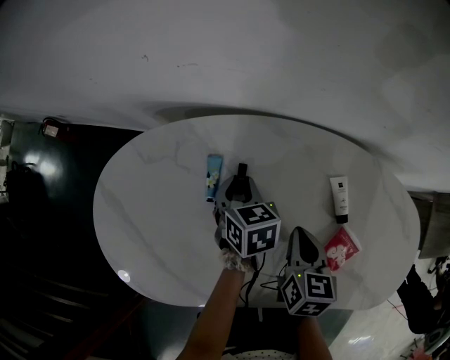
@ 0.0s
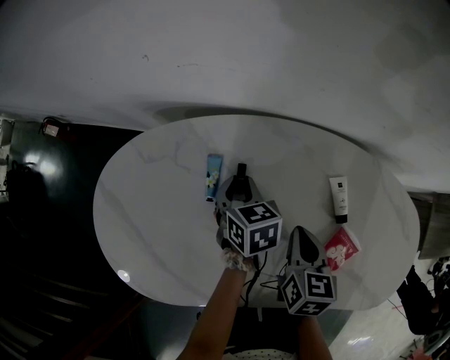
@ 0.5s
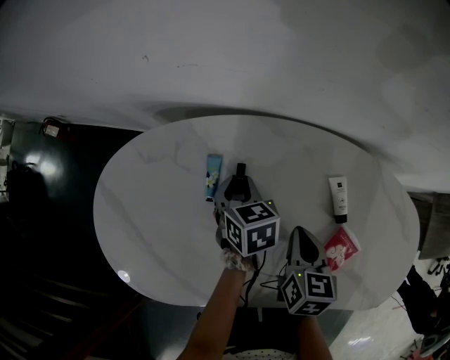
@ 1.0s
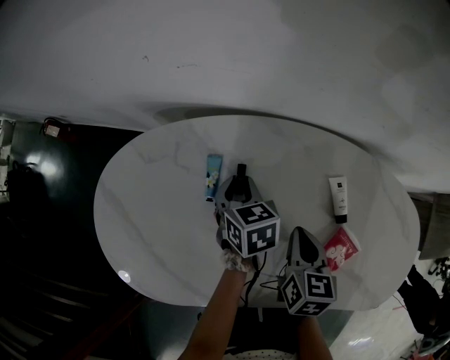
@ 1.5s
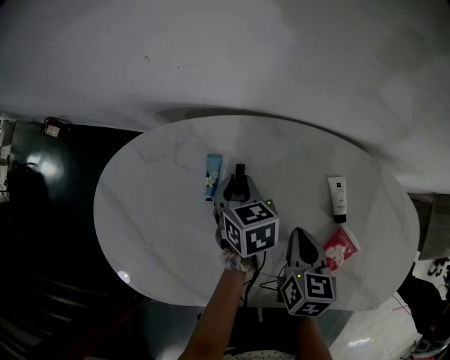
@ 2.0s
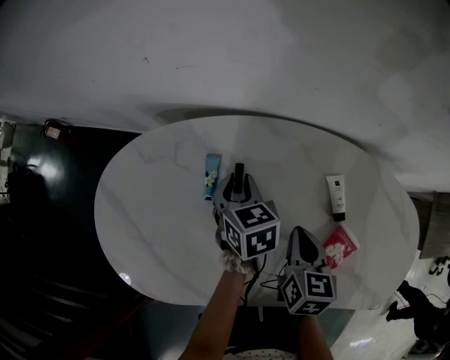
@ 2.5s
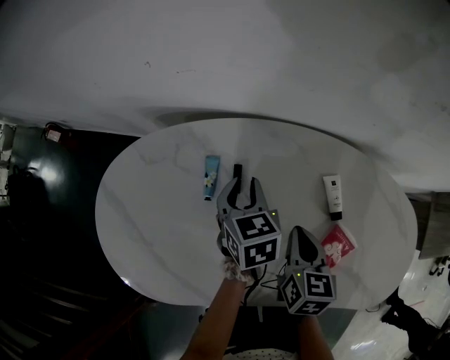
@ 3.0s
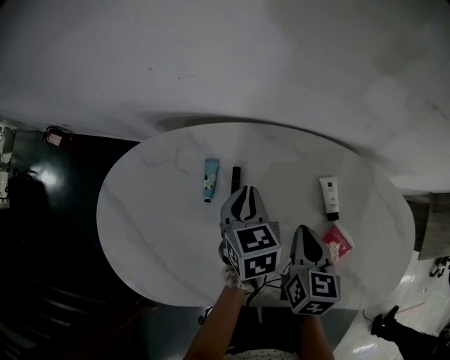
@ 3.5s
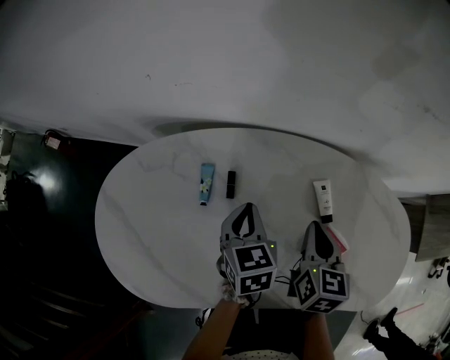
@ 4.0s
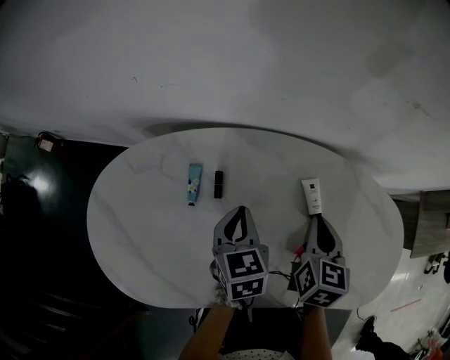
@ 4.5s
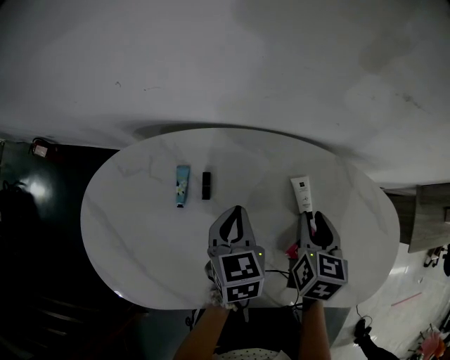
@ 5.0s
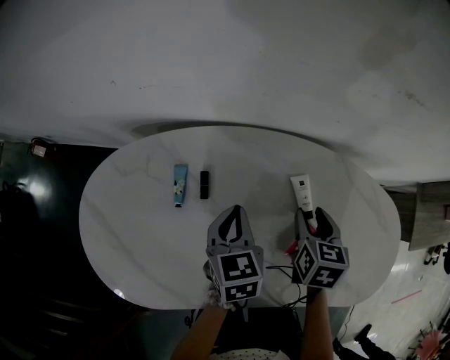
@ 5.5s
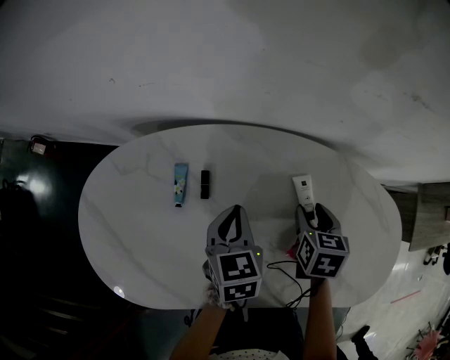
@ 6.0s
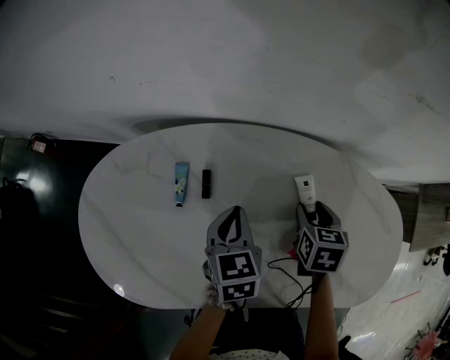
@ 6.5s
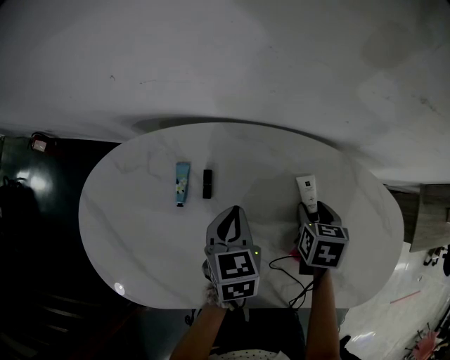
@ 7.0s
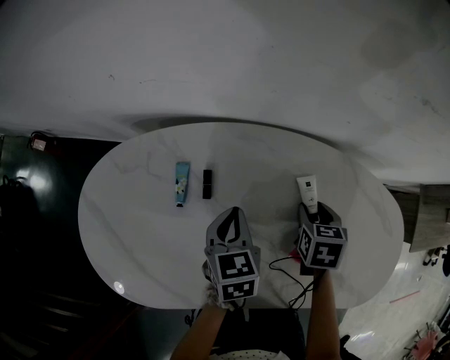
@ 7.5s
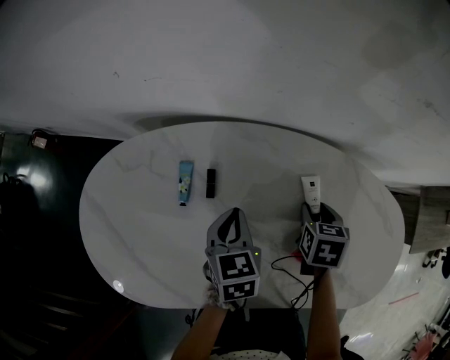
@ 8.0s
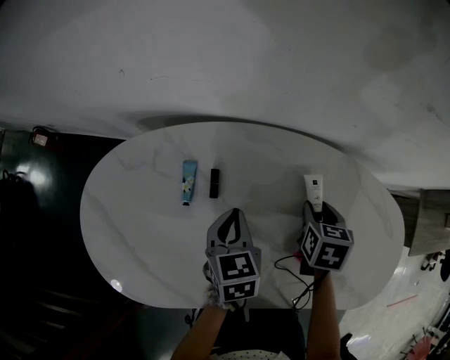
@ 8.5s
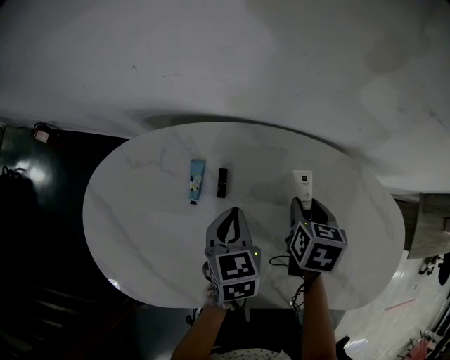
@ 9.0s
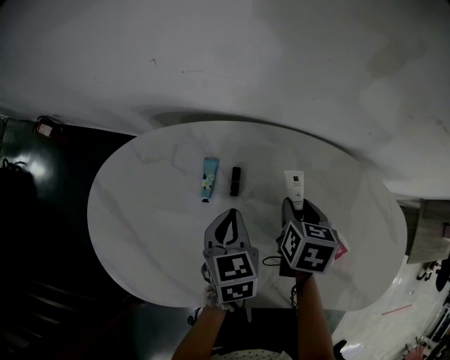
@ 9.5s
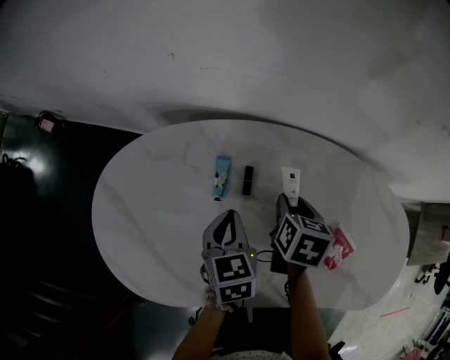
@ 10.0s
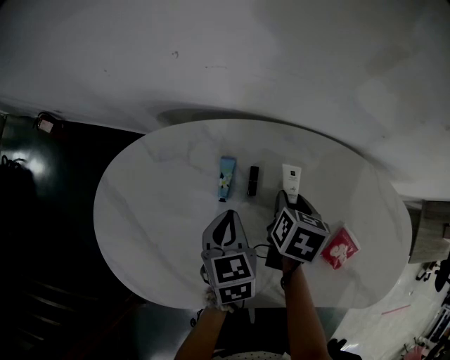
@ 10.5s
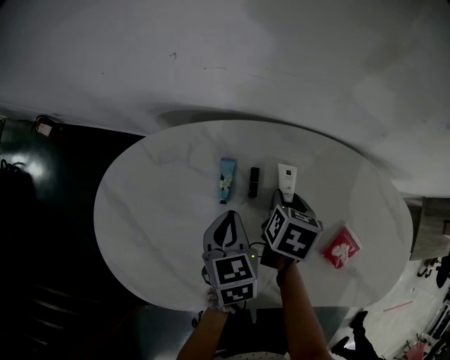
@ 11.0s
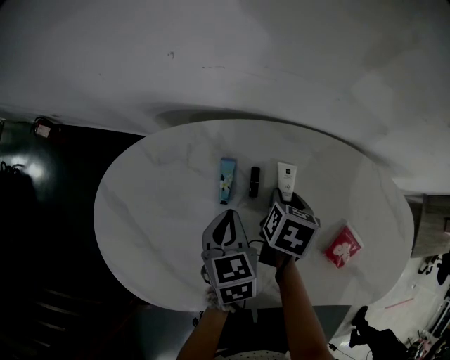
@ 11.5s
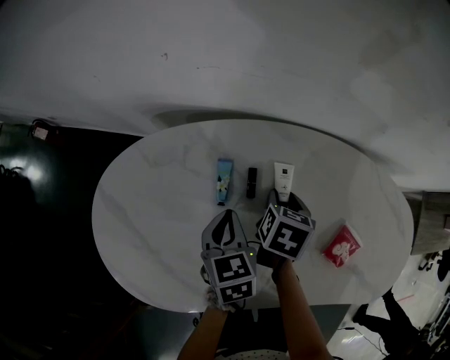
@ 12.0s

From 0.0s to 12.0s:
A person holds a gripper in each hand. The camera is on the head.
From 0.0s to 2.0s: The two grippers keep their place.
From 2.0s to 4.0s: The left gripper goes about 10 cm upward and backward, and closes up, while the right gripper shifts some 10 cm to the right and upward.
From 4.0s to 6.0s: The right gripper travels downward and to the right by about 10 cm, and opens its fingers.
From 6.0s to 8.0s: The grippers move only a little.
From 8.0s to 10.0s: The right gripper goes some 15 cm to the left; the left gripper goes about 10 cm to the left.
From 10.0s to 12.0s: There are only small adjustments of the grippers.

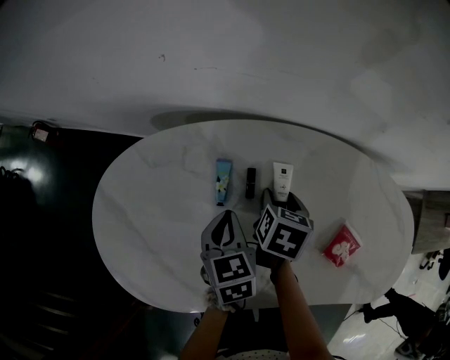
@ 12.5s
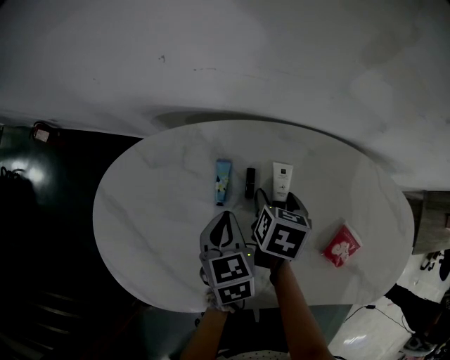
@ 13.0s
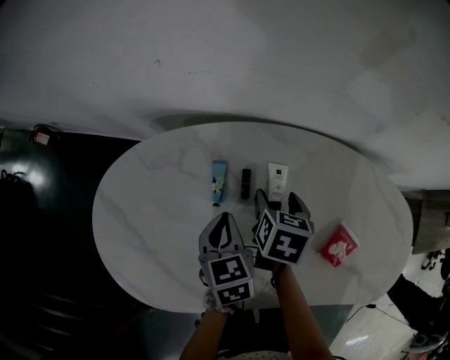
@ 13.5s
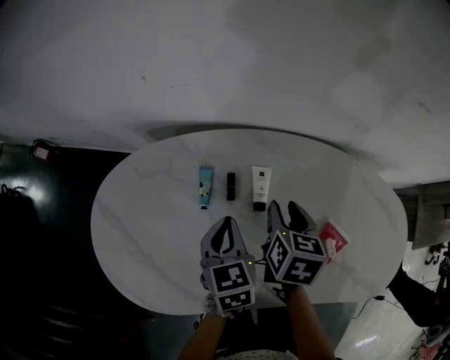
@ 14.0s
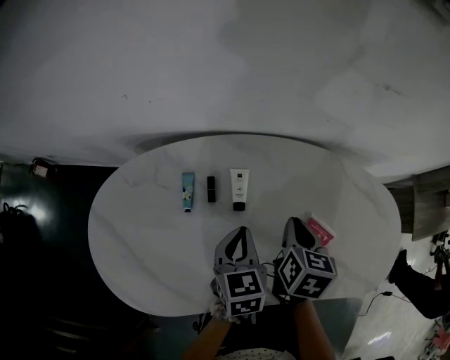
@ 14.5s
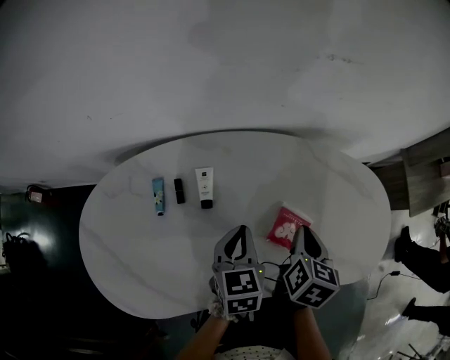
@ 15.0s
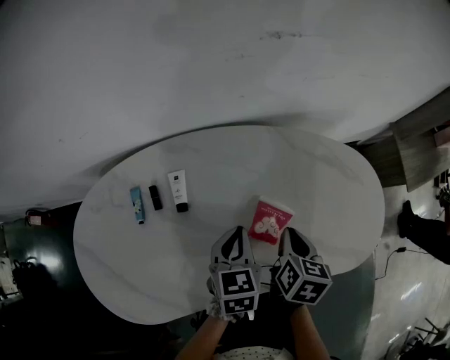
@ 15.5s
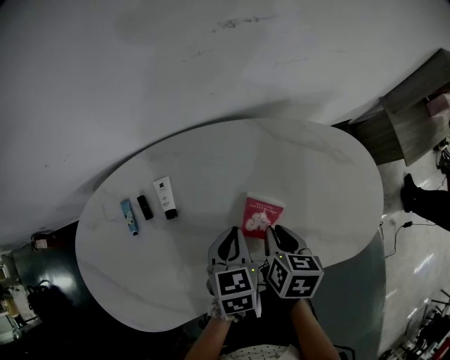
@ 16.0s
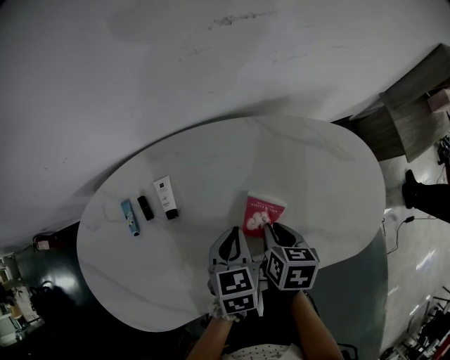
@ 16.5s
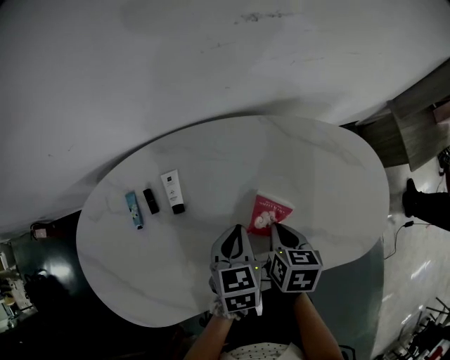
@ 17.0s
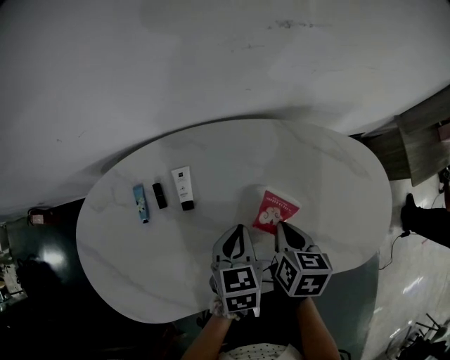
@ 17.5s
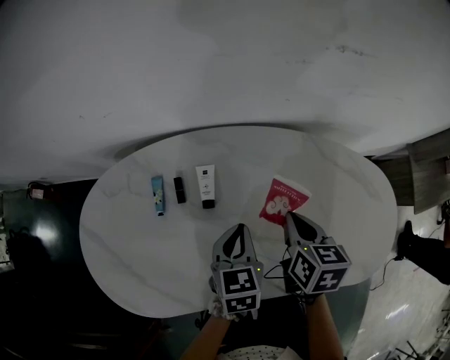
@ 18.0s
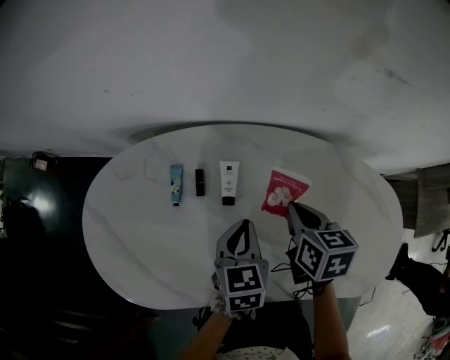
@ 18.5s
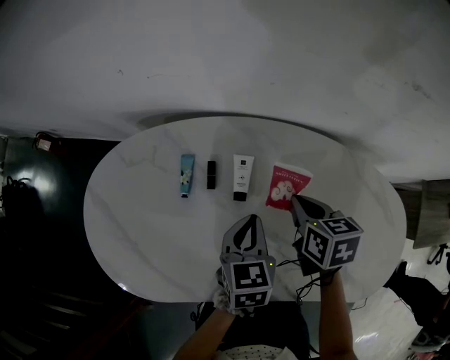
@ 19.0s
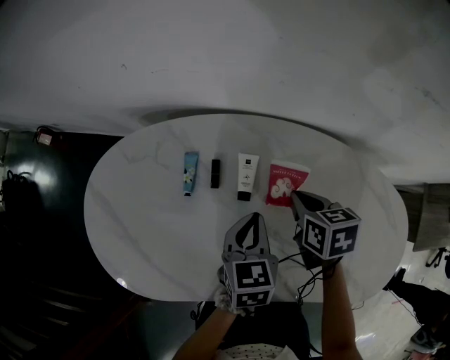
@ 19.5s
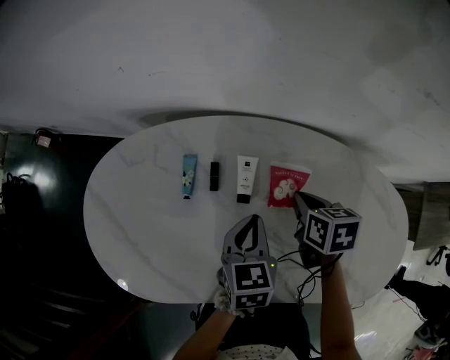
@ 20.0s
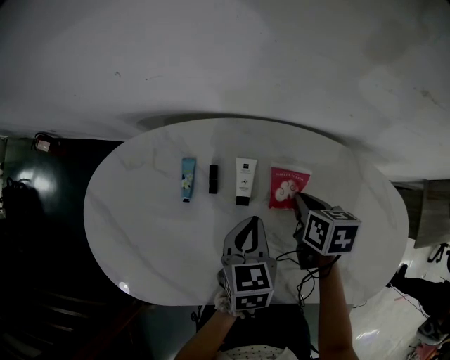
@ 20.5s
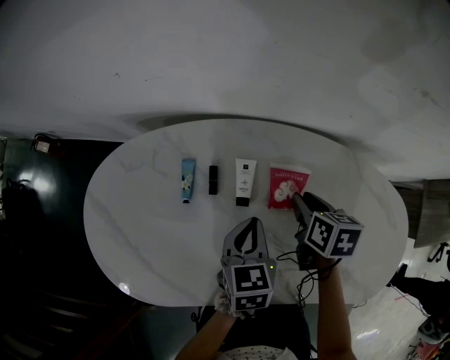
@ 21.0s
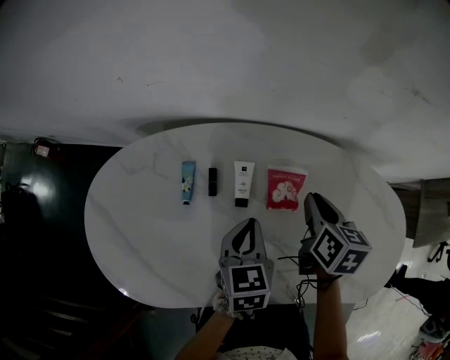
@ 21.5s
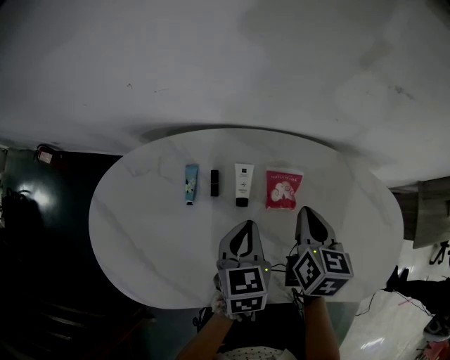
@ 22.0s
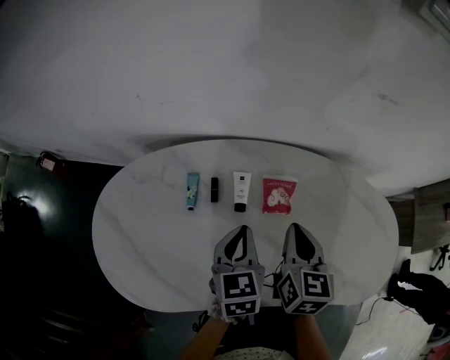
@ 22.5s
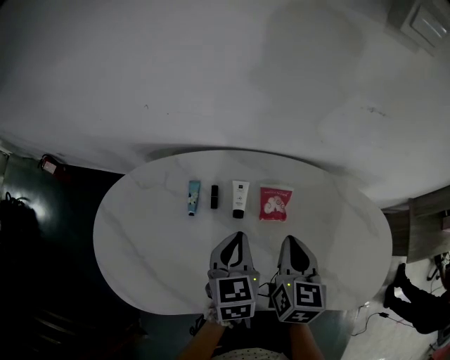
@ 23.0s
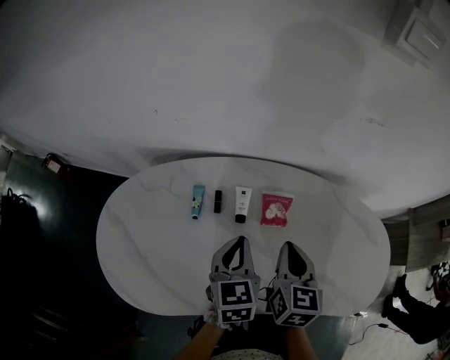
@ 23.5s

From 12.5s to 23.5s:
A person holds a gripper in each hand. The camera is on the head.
From 12.5s to 14.5s: The right gripper shifts approximately 15 cm to the right, upward and backward, and closes its fingers, while the left gripper moves to the right, some 15 cm.
From 14.5s to 16.0s: The left gripper travels to the right by some 15 cm; the right gripper moves to the right and backward, roughly 15 cm.
From 16.0s to 18.0s: The right gripper heads forward and to the left, covering roughly 10 cm. The left gripper shifts approximately 10 cm to the left.
From 18.0s to 20.0s: The left gripper is displaced to the left by approximately 5 cm, while the right gripper heads forward, downward and to the left, covering about 10 cm, and swivels about 20 degrees.
From 20.0s to 21.5s: The right gripper shifts by about 5 cm, and changes its angle by approximately 20 degrees.
From 21.5s to 23.5s: The left gripper shifts about 10 cm upward; the right gripper heads backward and upward, covering approximately 15 cm.

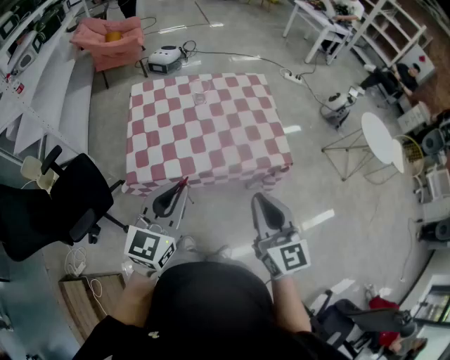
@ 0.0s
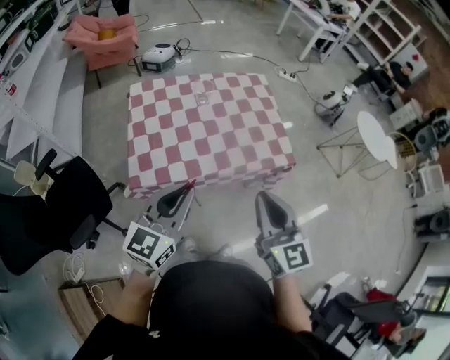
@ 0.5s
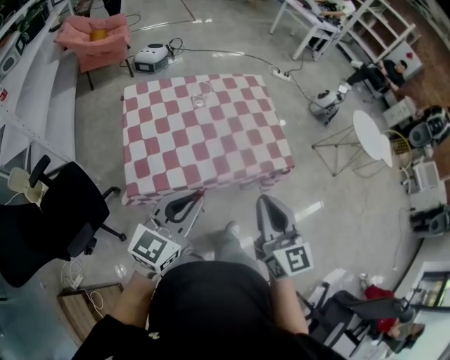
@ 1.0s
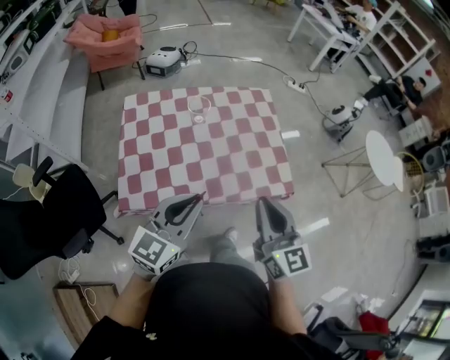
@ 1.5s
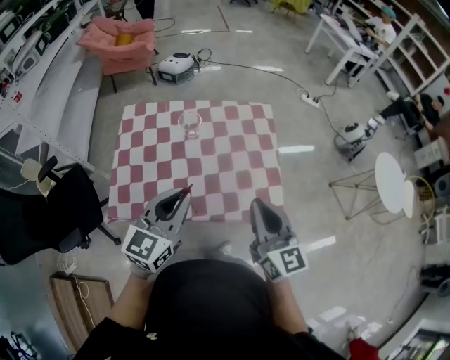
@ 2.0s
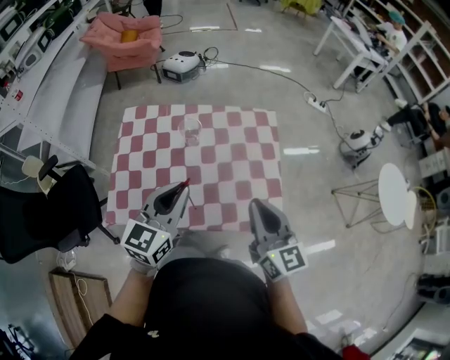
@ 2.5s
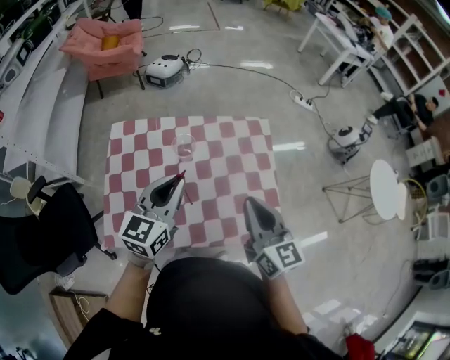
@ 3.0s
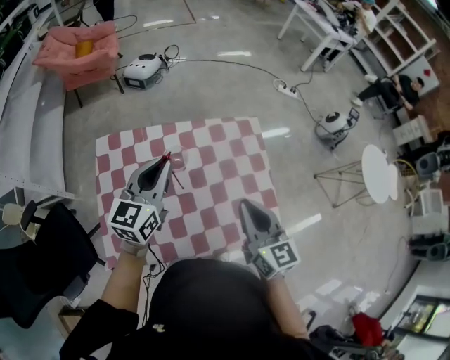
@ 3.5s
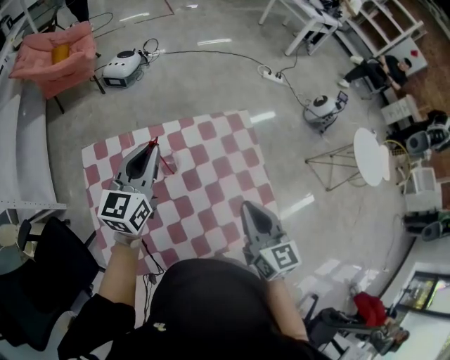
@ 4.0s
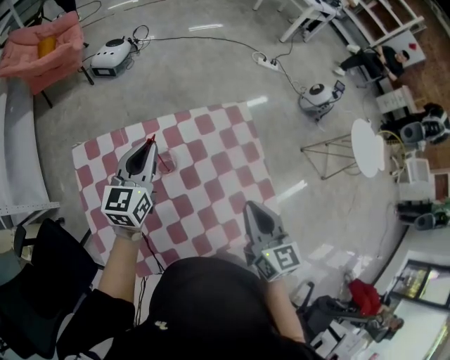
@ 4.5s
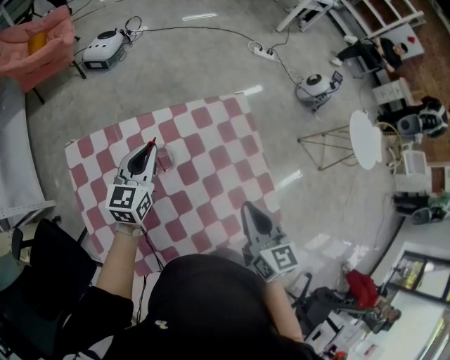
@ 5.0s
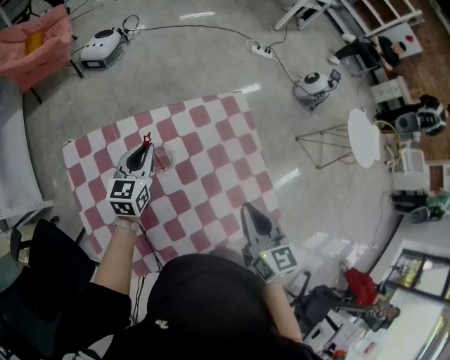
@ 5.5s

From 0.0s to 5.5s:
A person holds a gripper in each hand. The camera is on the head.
From 0.0s to 2.0s: Both grippers move forward, roughly 25 cm.
From 2.0s to 3.5s: The right gripper is displaced forward by about 15 cm; the left gripper moves forward, some 25 cm.
From 3.5s to 5.5s: The right gripper goes some 5 cm downward, while the left gripper shifts roughly 20 cm downward and forward.
